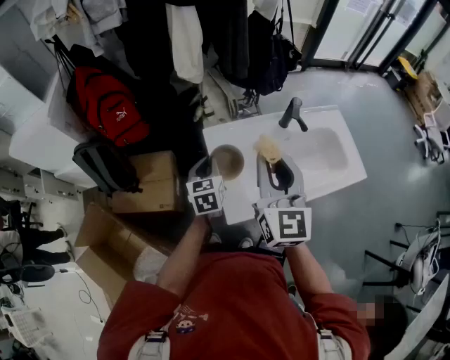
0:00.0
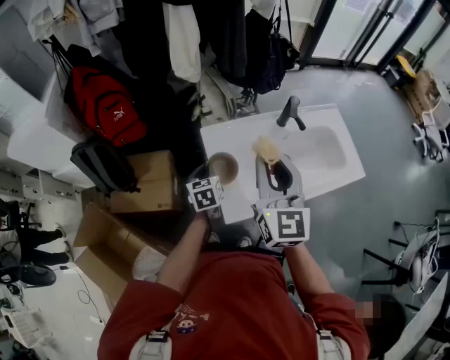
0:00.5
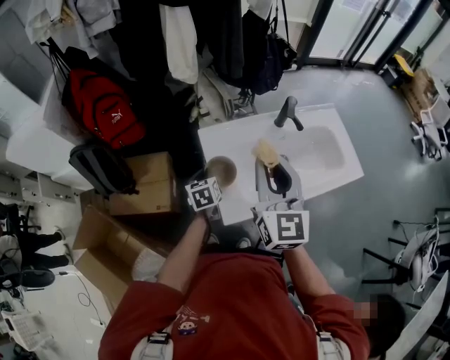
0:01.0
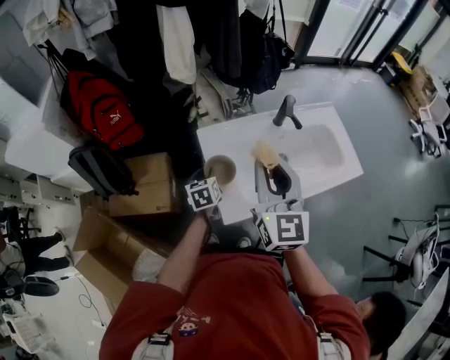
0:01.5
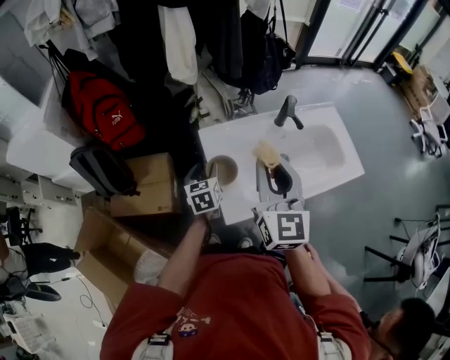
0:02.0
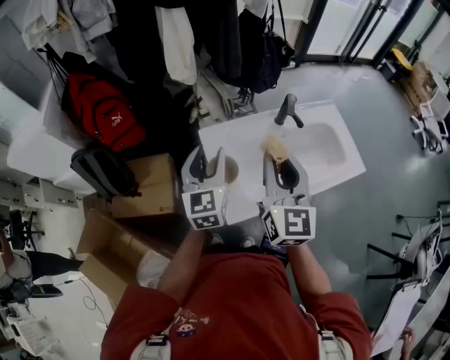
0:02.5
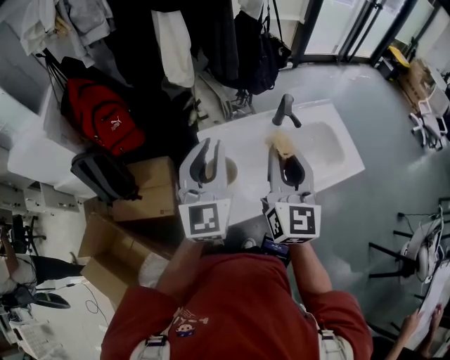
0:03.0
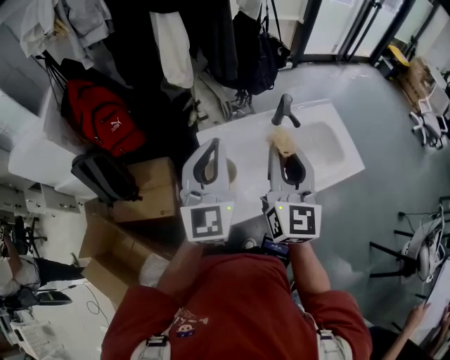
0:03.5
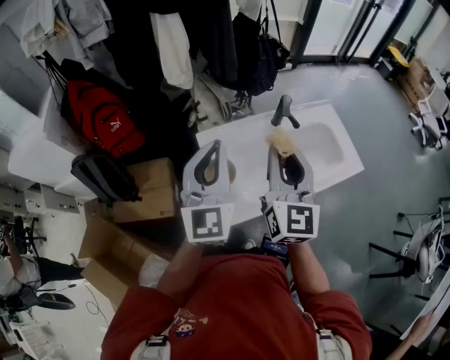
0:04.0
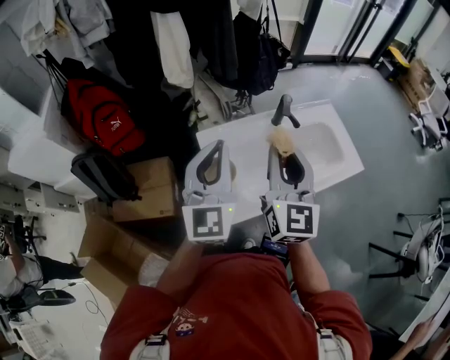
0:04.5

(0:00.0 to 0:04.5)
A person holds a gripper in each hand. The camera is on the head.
0:00.0 - 0:02.0: The left gripper is displaced downward by roughly 5 cm, and opens.
0:02.0 - 0:04.5: The right gripper moves roughly 5 cm, while the left gripper shifts some 30 cm upward, tips its fingers upward by roughly 40 degrees, and closes up.

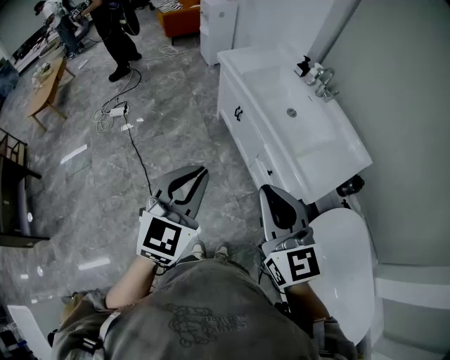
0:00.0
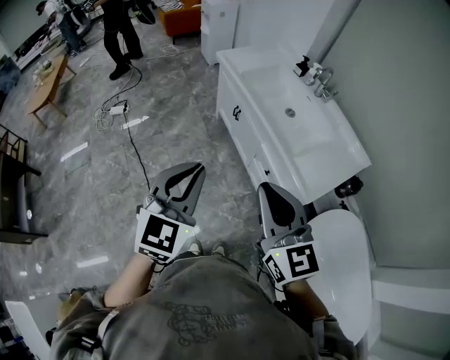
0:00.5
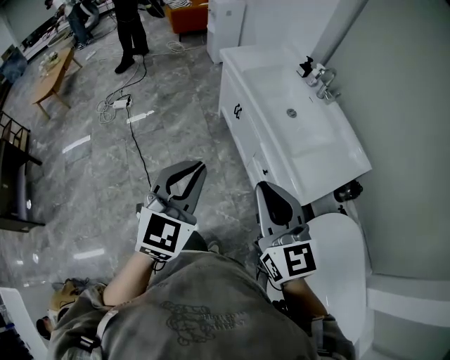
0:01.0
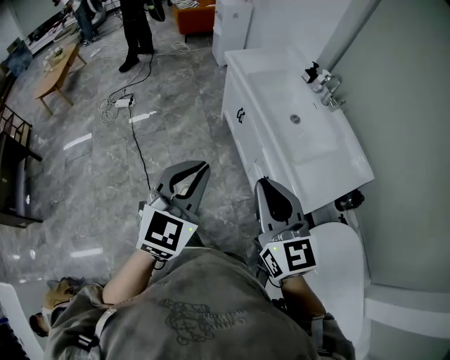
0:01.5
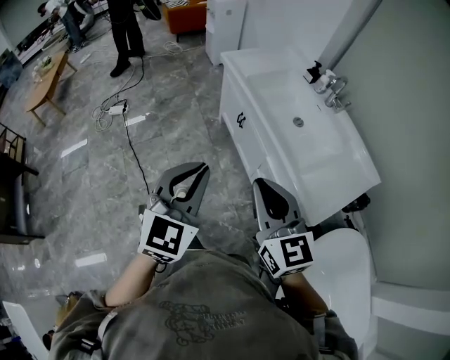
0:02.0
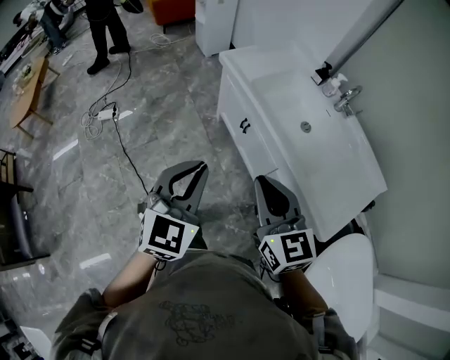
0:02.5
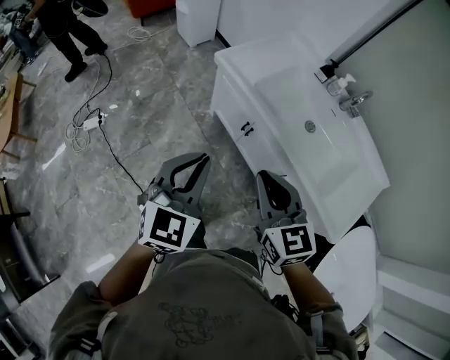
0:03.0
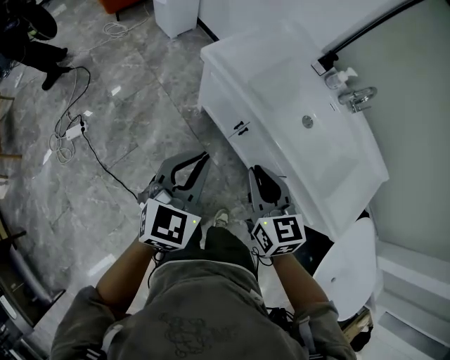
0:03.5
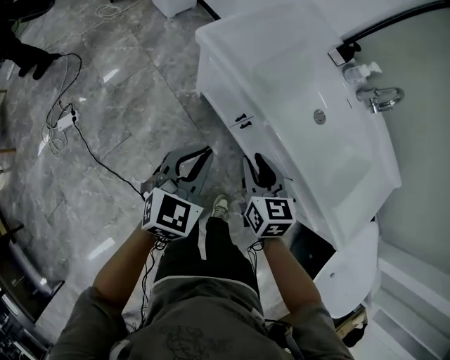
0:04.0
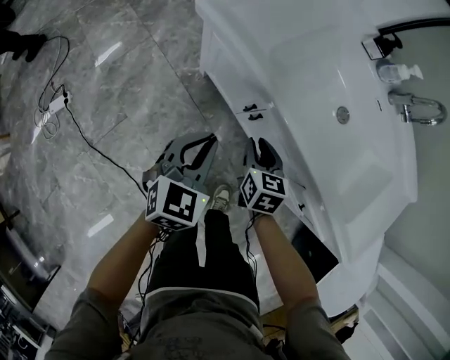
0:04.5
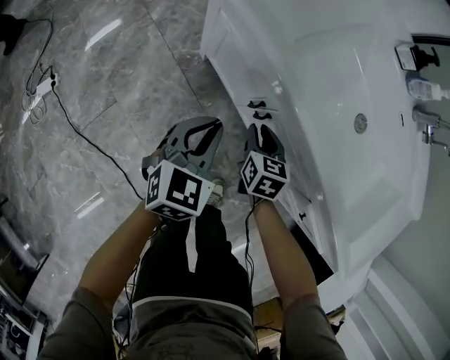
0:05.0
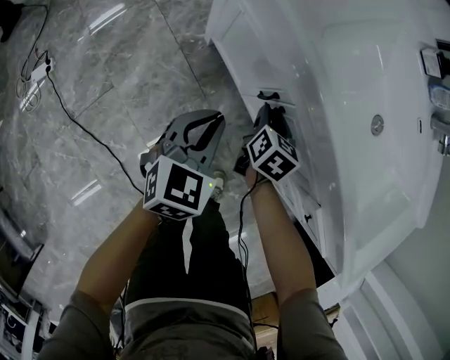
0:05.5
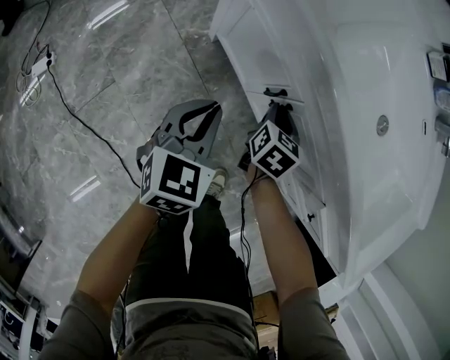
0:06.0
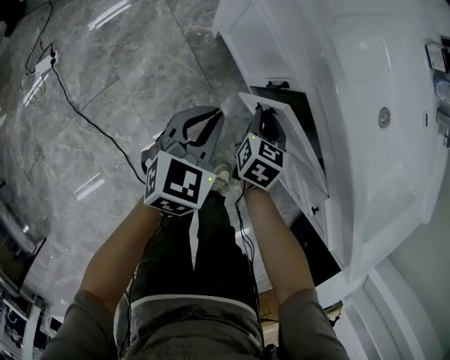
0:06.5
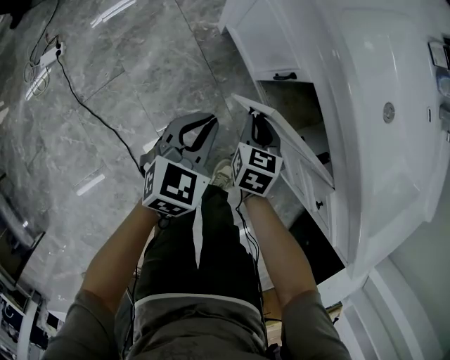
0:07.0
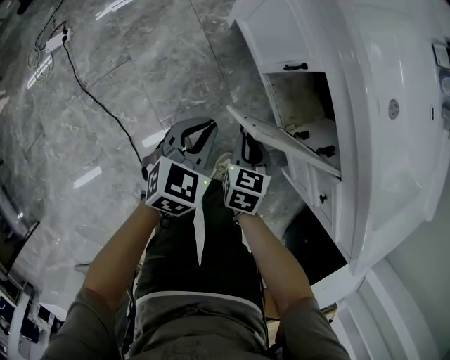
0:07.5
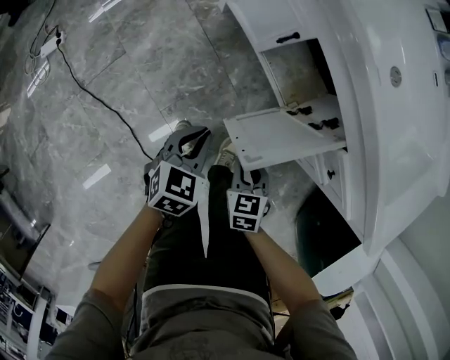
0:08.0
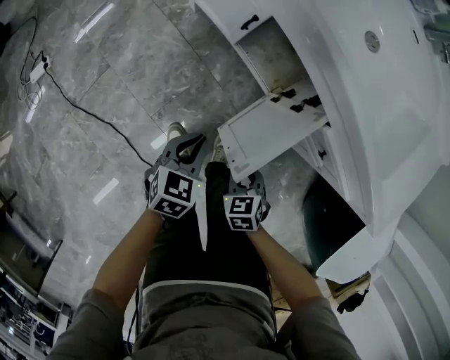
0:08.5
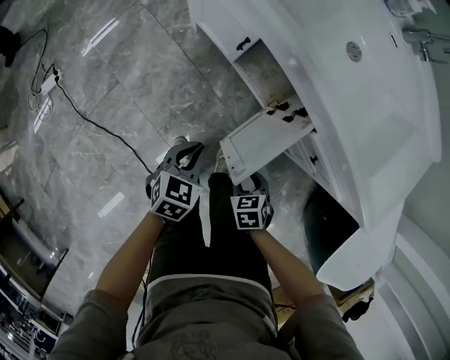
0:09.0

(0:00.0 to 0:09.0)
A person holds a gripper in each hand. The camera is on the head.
0:00.0 - 0:02.0: The left gripper shifts about 10 cm forward; the right gripper is displaced forward and downward by about 15 cm.
0:02.0 - 0:04.5: The two grippers travel together, about 40 cm. The right gripper angles its fingers downward, by approximately 30 degrees, while the left gripper changes its angle by some 30 degrees.
0:04.5 - 0:07.0: The two grippers go some 15 cm downward.
0:07.0 - 0:09.0: The left gripper moves backward and to the right, roughly 15 cm. The right gripper goes some 30 cm backward and to the right, swivels about 20 degrees, and opens.

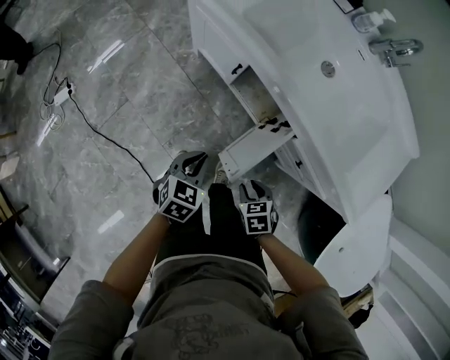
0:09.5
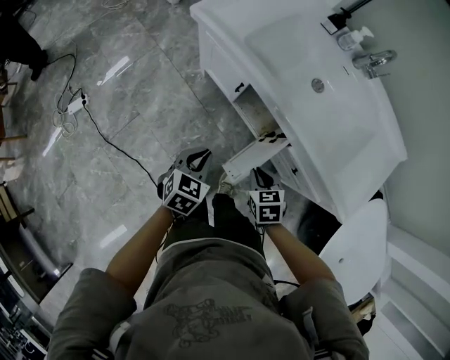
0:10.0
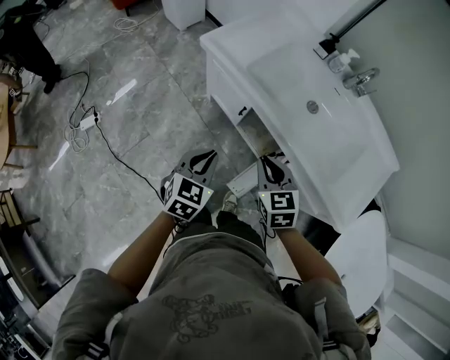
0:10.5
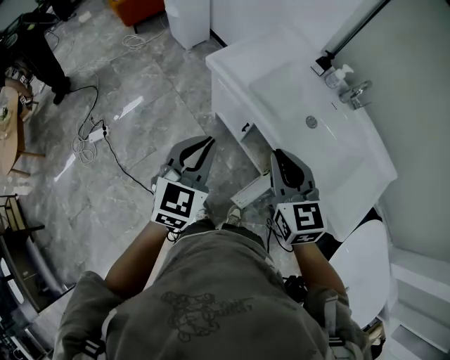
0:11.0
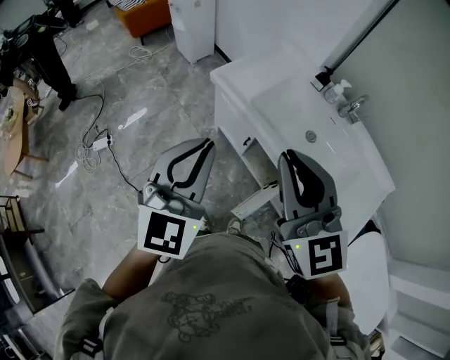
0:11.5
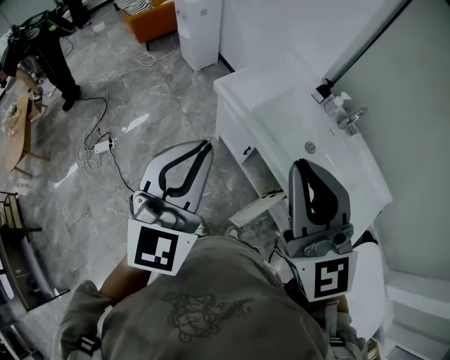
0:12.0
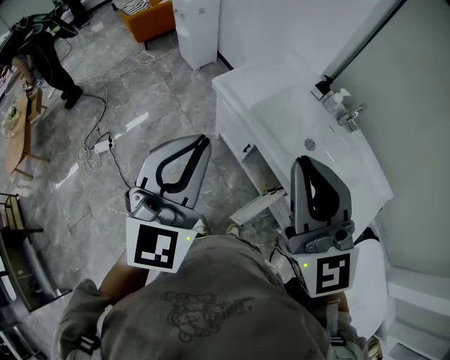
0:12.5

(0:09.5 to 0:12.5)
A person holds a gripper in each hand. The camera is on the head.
0:09.5 - 0:11.0: The grippers both shift upward by some 40 cm. The left gripper rotates approximately 30 degrees, while the right gripper points its fingers some 50 degrees further upward, and closes.
0:11.0 - 0:12.5: The two grippers go about 20 cm upward. The right gripper swivels some 30 degrees; the left gripper rotates about 20 degrees.

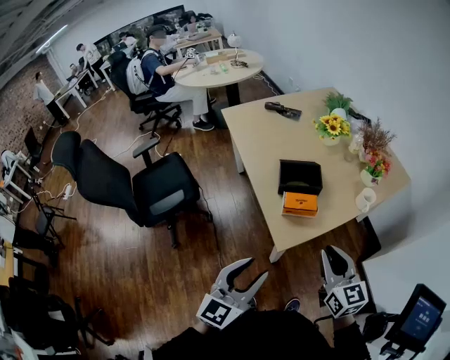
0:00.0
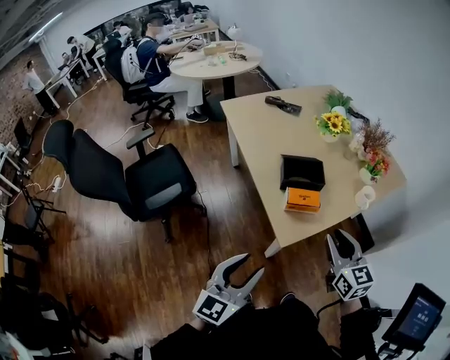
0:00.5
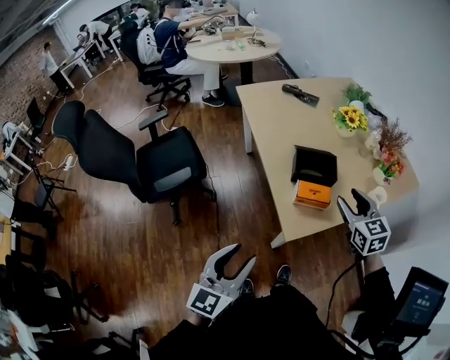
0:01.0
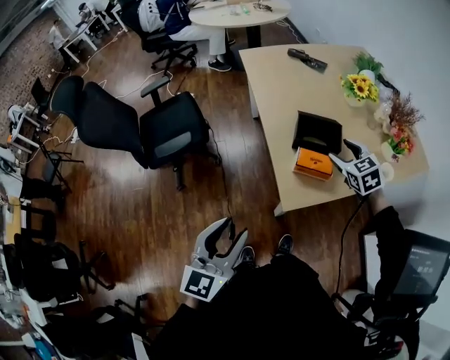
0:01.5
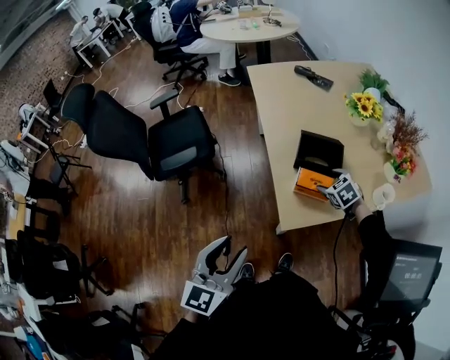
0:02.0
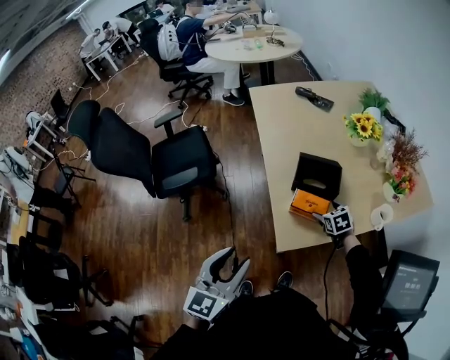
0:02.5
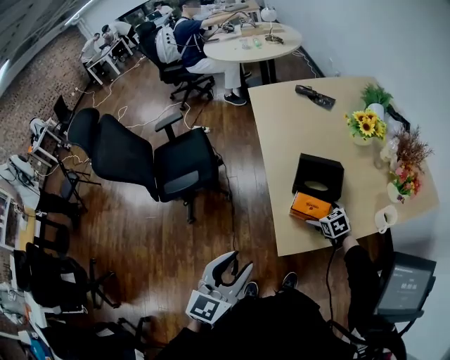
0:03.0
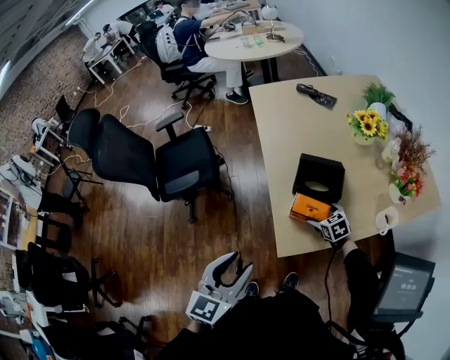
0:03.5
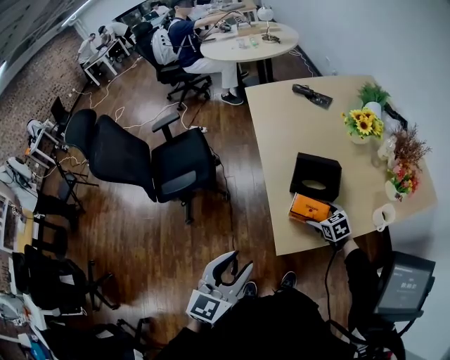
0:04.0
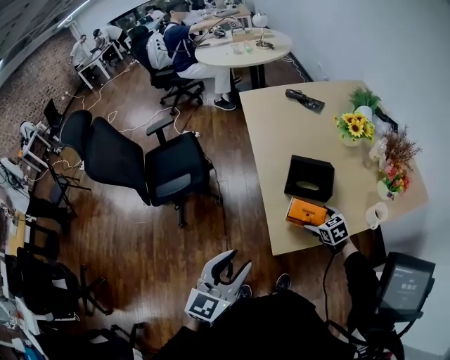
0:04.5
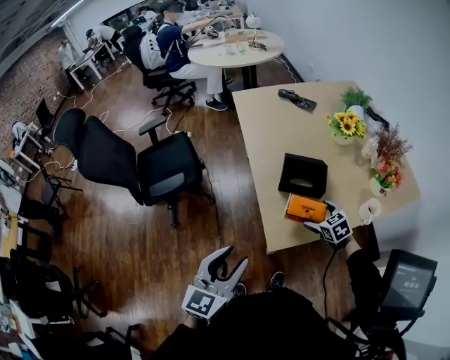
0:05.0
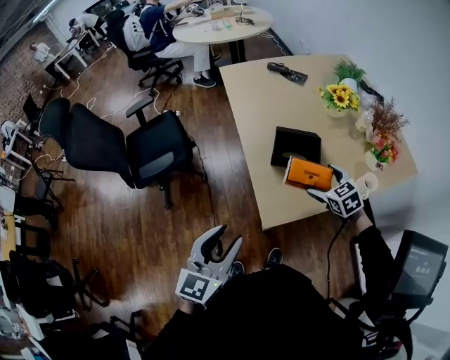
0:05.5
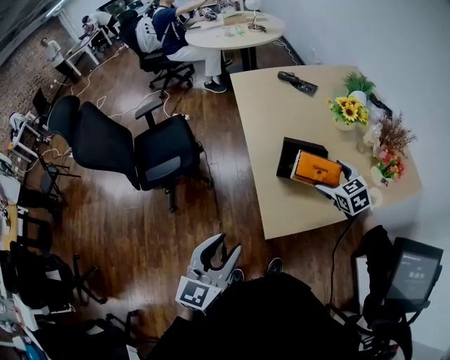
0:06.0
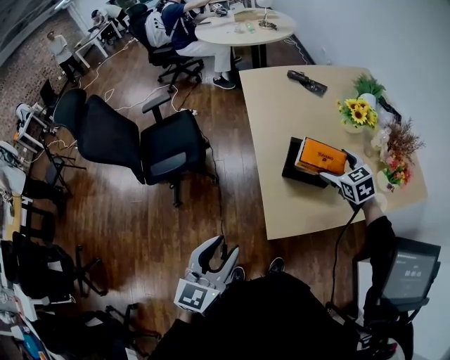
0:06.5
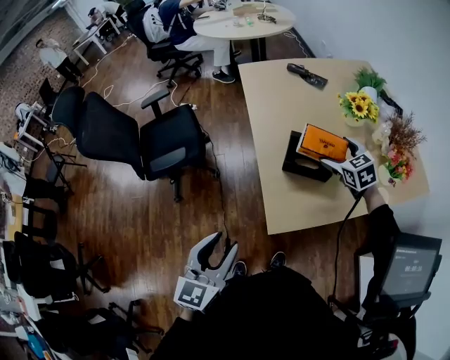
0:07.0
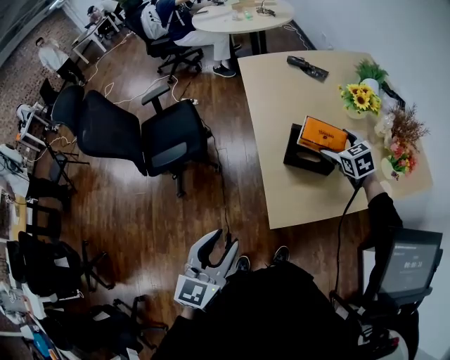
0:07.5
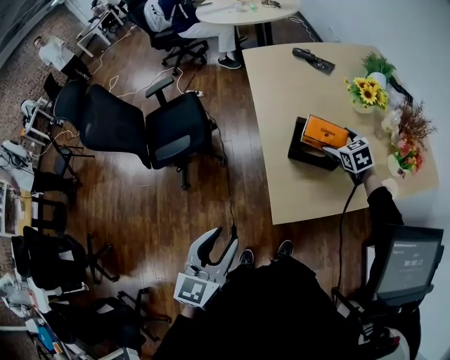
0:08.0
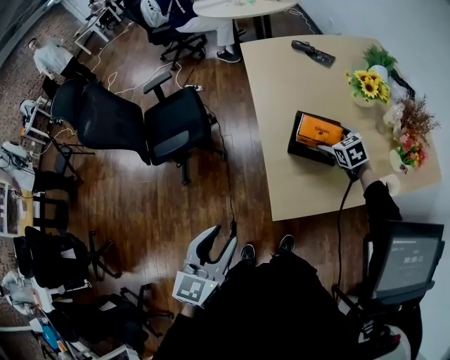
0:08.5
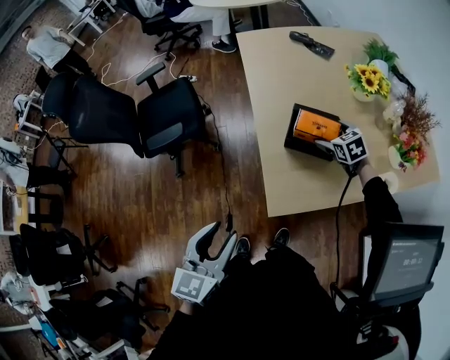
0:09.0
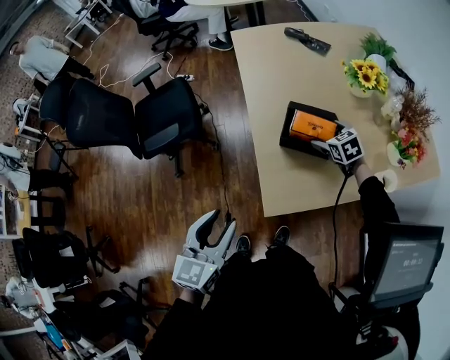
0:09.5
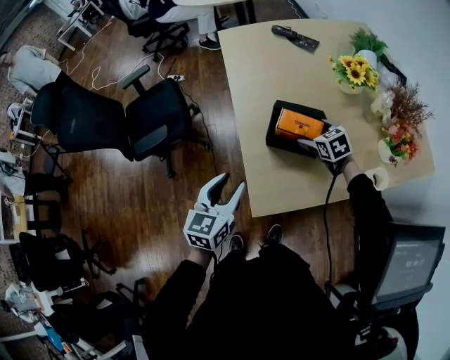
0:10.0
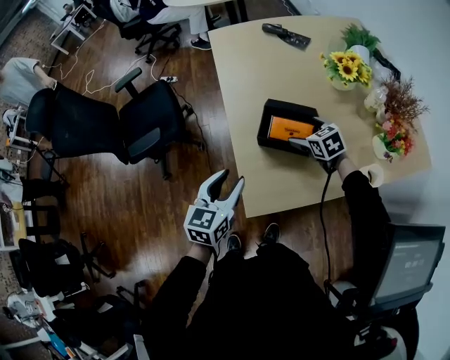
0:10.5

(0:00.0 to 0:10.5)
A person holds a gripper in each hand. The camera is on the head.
0:00.0 - 0:02.0: The left gripper changes its angle by roughly 20 degrees; the right gripper is displaced forward and downward by about 35 cm, angles its fingers downward, by roughly 50 degrees, and opens its fingers.
0:02.0 - 0:04.0: The right gripper goes some 5 cm downward. Meanwhile the left gripper moves some 5 cm.
0:04.0 - 0:06.5: The right gripper goes approximately 20 cm upward and forward.
0:06.5 - 0:08.5: The right gripper is displaced downward by about 10 cm.
0:08.5 - 0:10.5: The left gripper goes roughly 20 cm forward, to the right and downward.
